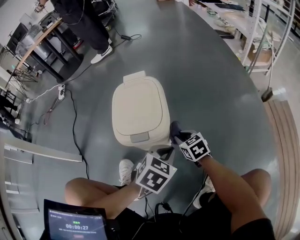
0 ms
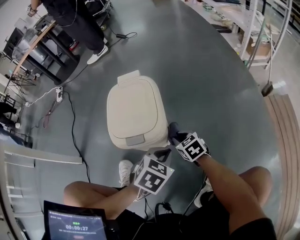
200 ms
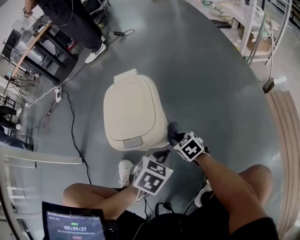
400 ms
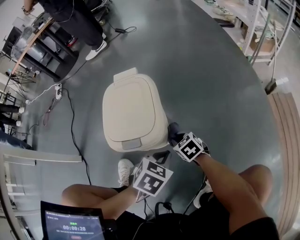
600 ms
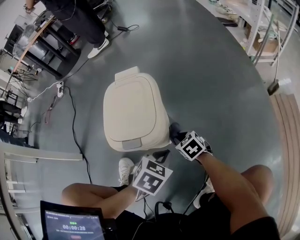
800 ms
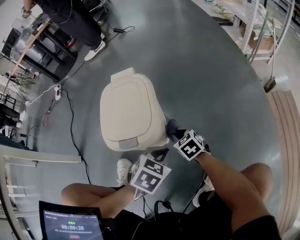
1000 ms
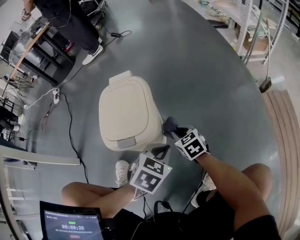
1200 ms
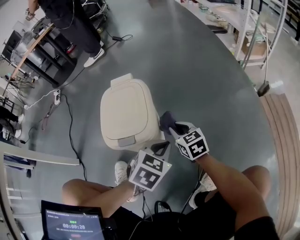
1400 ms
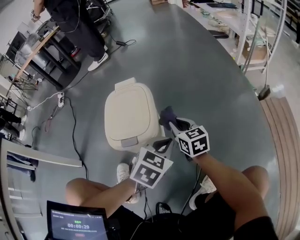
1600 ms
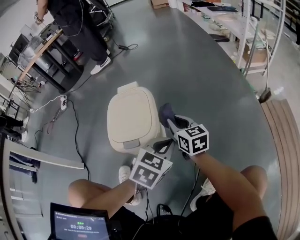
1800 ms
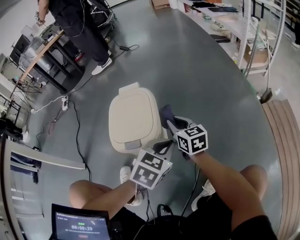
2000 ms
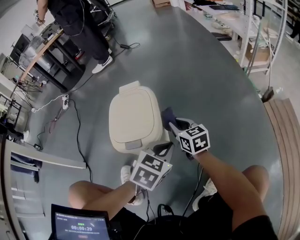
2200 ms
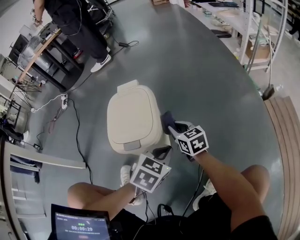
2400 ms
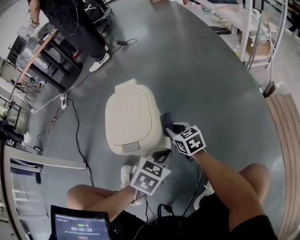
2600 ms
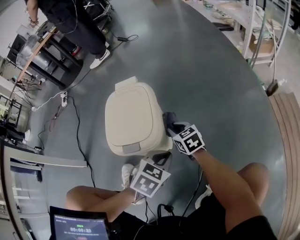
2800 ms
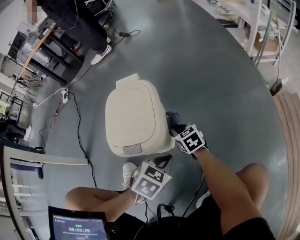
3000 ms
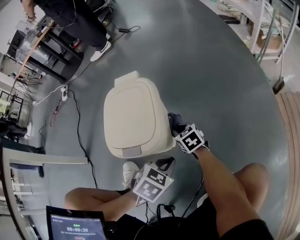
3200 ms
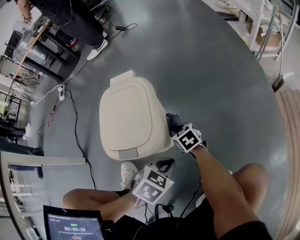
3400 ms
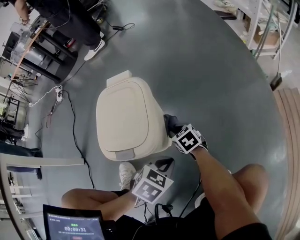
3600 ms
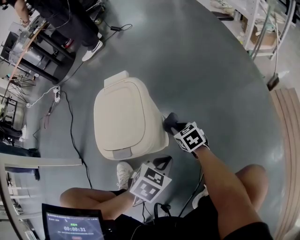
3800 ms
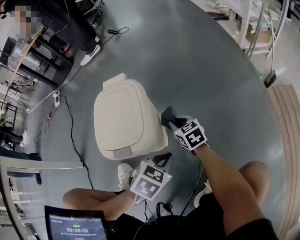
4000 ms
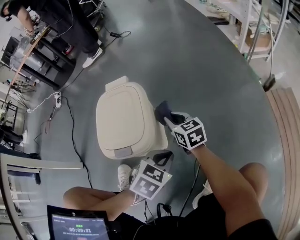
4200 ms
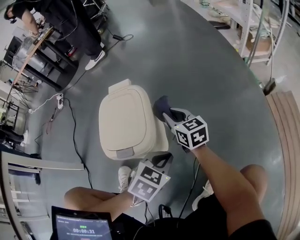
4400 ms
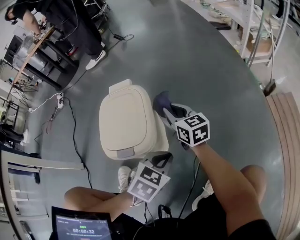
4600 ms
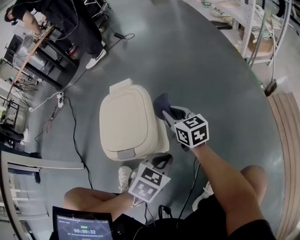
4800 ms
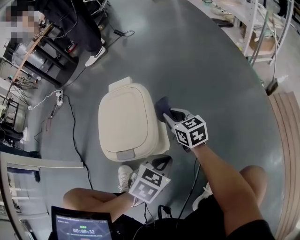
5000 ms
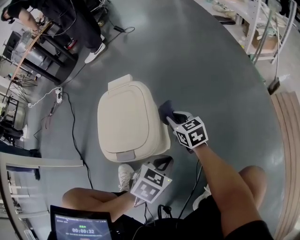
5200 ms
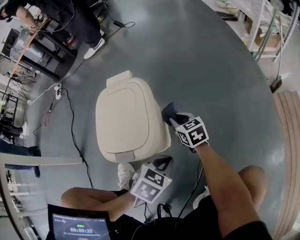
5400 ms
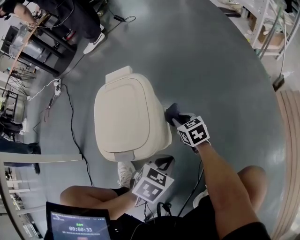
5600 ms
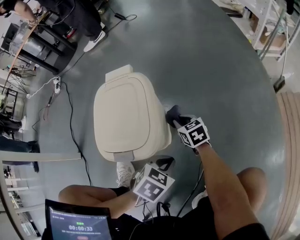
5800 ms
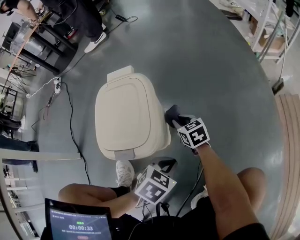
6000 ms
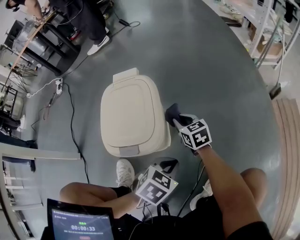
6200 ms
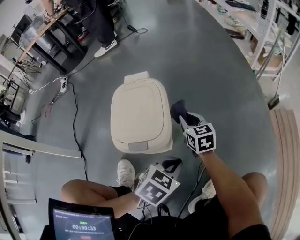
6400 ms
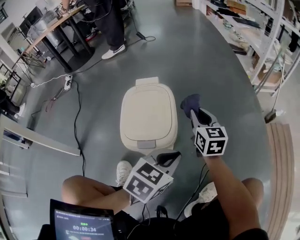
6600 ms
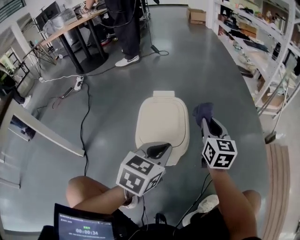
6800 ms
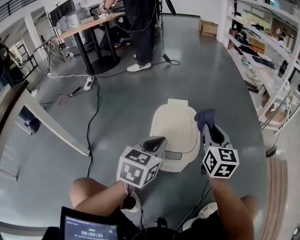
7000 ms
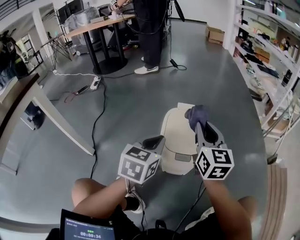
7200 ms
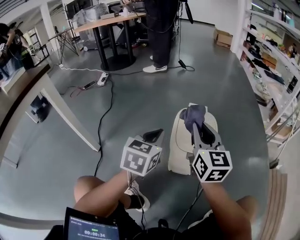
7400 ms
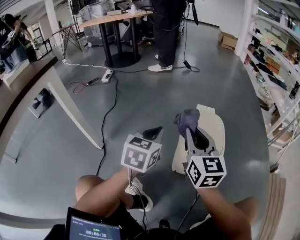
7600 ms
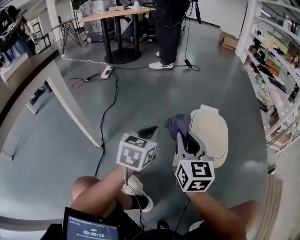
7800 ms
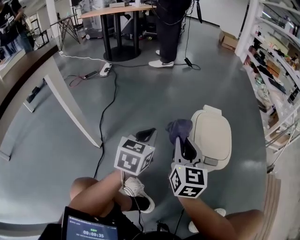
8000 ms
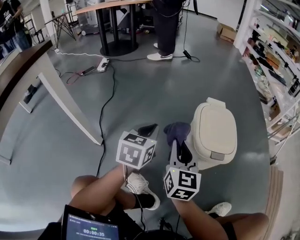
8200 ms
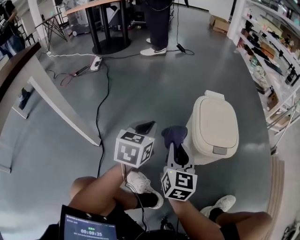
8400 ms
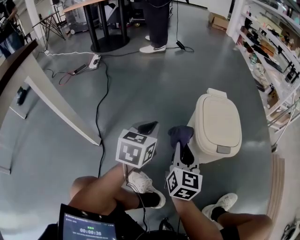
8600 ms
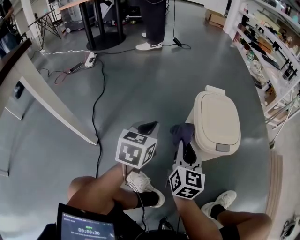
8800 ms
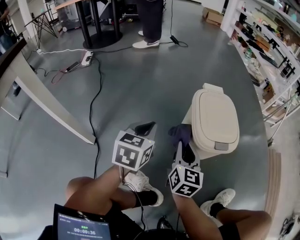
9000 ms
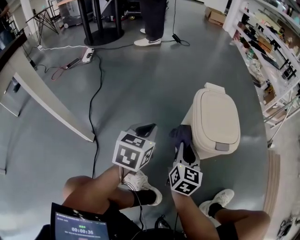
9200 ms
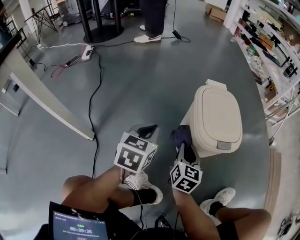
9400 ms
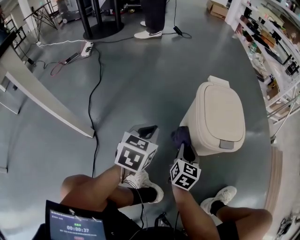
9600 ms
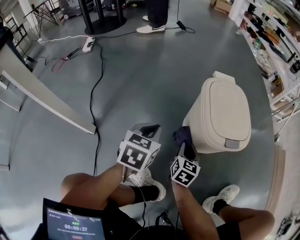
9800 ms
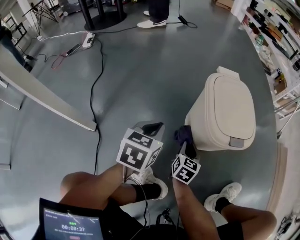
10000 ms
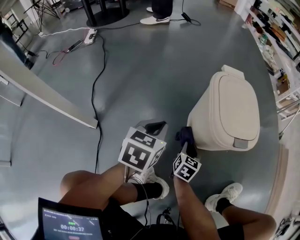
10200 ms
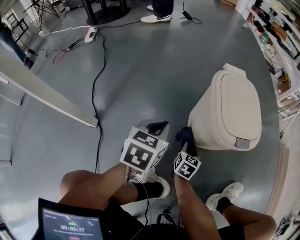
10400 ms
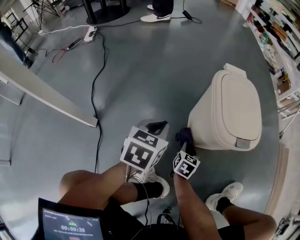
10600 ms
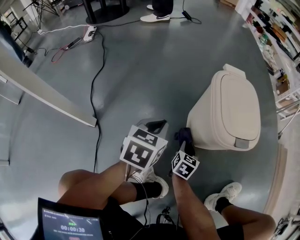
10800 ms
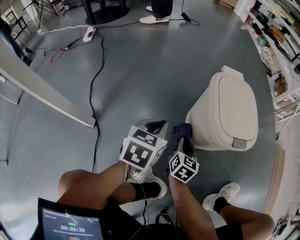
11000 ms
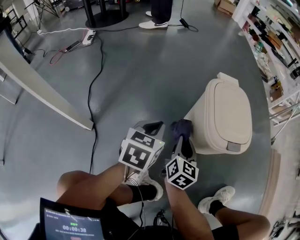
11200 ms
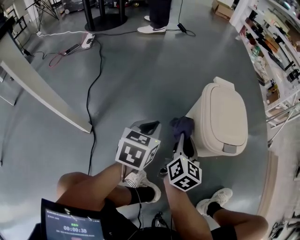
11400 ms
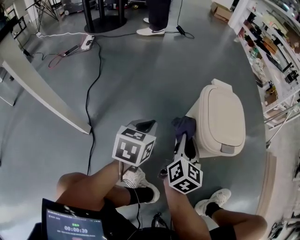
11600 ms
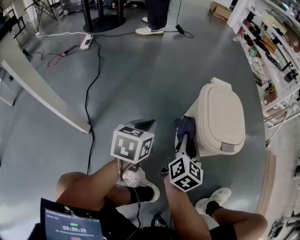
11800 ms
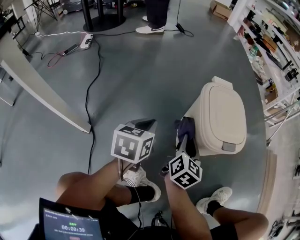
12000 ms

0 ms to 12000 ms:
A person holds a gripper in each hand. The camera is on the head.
0 ms to 1600 ms: The right gripper goes approximately 10 cm upward, and turns by about 20 degrees. The left gripper shifts by about 5 cm.
1600 ms to 3000 ms: The grippers both shift downward by some 10 cm. The right gripper changes its angle by about 20 degrees.
3000 ms to 4400 ms: The right gripper is displaced upward by roughly 10 cm, and rotates about 20 degrees; the left gripper shifts by roughly 5 cm.
4400 ms to 6000 ms: The right gripper goes some 15 cm downward, and changes its angle by about 20 degrees. Meanwhile the left gripper heads downward, covering about 5 cm.
6000 ms to 7600 ms: The left gripper moves roughly 40 cm, and tilts its fingers some 40 degrees upward. Meanwhile the right gripper travels upward by about 35 cm, and tilts its fingers roughly 30 degrees upward.
7600 ms to 9000 ms: The right gripper is displaced downward by about 20 cm, and changes its angle by approximately 30 degrees, while the left gripper travels downward and to the left by some 10 cm.
9000 ms to 10400 ms: The right gripper moves downward, approximately 25 cm, and swivels roughly 30 degrees; the left gripper travels downward by approximately 10 cm.
10400 ms to 12000 ms: The right gripper shifts about 20 cm upward, and changes its angle by some 20 degrees.

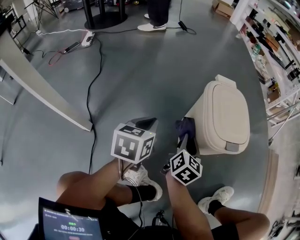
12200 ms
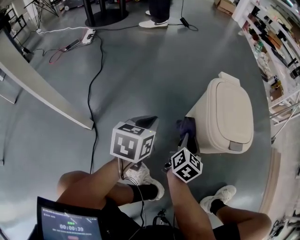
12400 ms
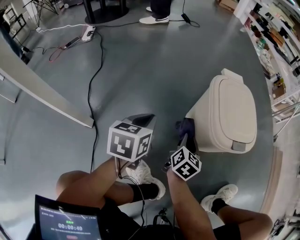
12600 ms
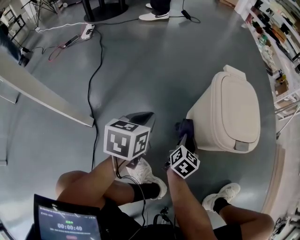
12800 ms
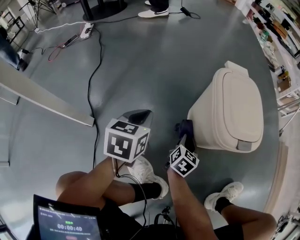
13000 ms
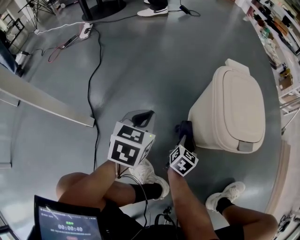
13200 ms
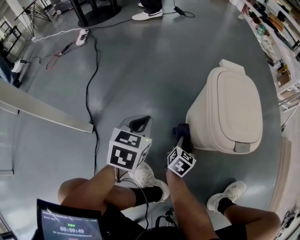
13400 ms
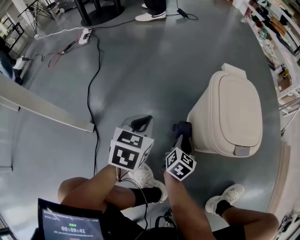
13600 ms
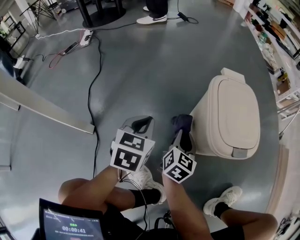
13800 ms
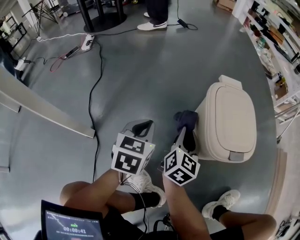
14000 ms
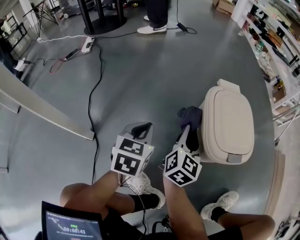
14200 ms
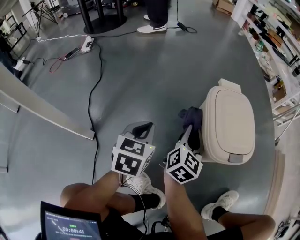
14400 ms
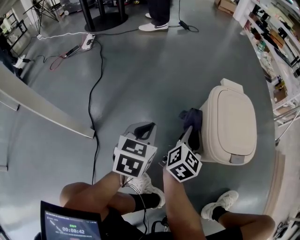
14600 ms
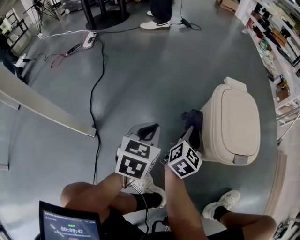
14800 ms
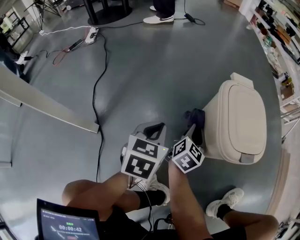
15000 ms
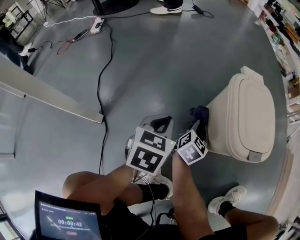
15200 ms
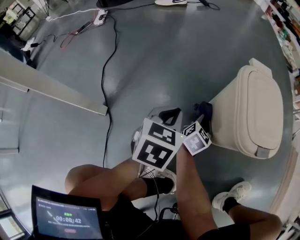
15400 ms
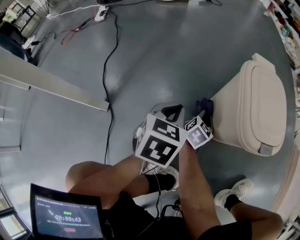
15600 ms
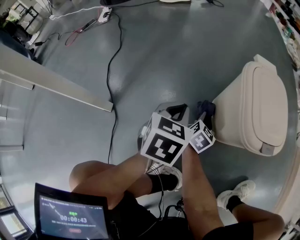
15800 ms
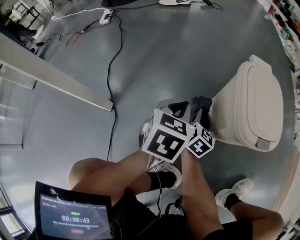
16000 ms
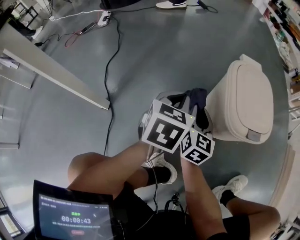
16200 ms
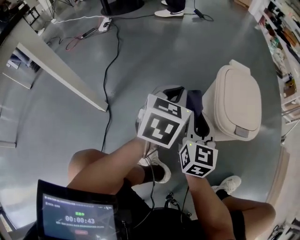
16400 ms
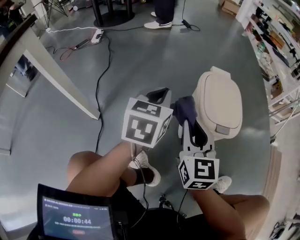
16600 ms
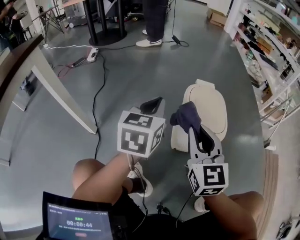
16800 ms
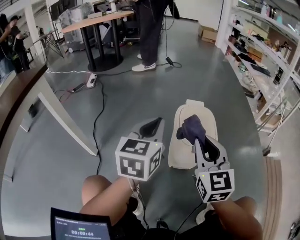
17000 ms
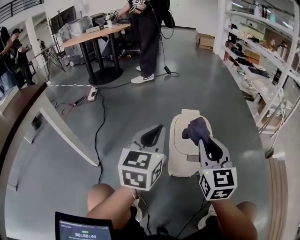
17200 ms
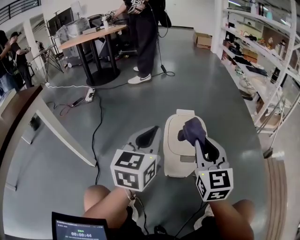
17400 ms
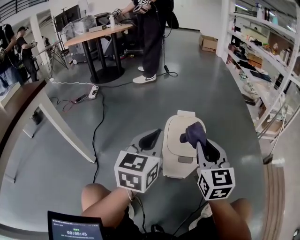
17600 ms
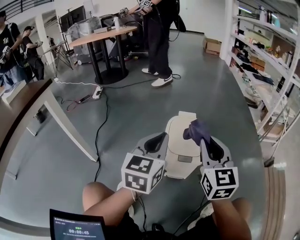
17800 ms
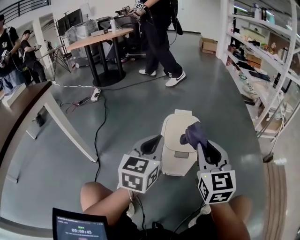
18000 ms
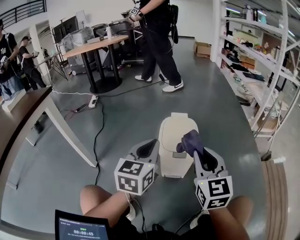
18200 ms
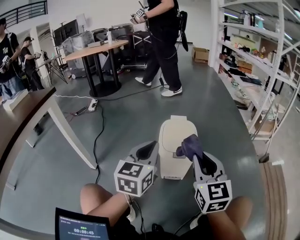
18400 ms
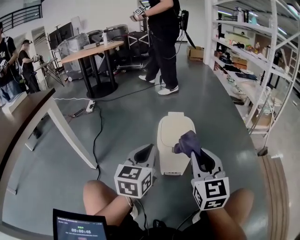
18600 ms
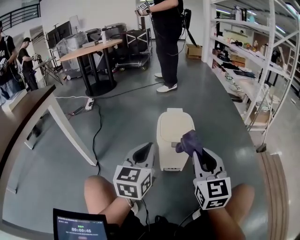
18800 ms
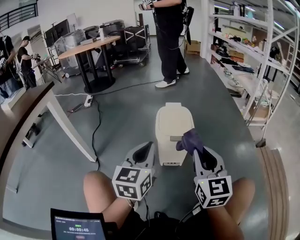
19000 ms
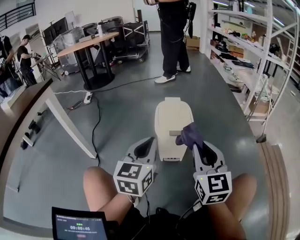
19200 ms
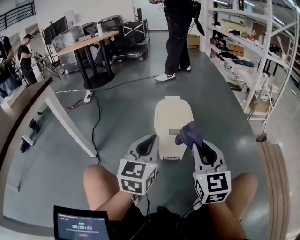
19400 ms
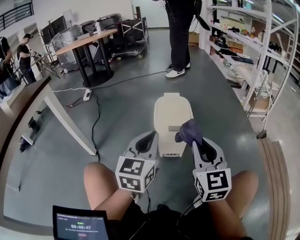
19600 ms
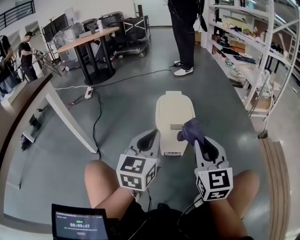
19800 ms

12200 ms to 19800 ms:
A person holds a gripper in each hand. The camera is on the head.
12200 ms to 13800 ms: The right gripper goes downward and returns, some 15 cm each way.
13800 ms to 15200 ms: The right gripper travels upward and back again, some 10 cm each way.
15200 ms to 16800 ms: The left gripper goes approximately 25 cm upward, and swivels roughly 20 degrees. The right gripper shifts approximately 35 cm upward and backward, and changes its angle by some 50 degrees.
16800 ms to 18200 ms: The left gripper heads to the right, backward and upward, covering about 15 cm. The right gripper moves to the right and upward, some 15 cm.
18200 ms to 19800 ms: Both grippers move backward, some 10 cm.

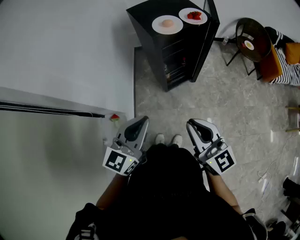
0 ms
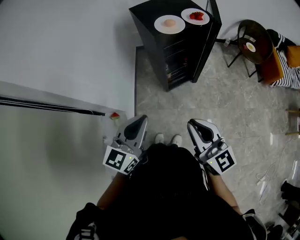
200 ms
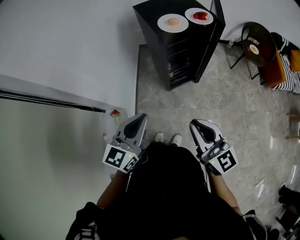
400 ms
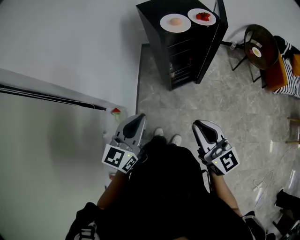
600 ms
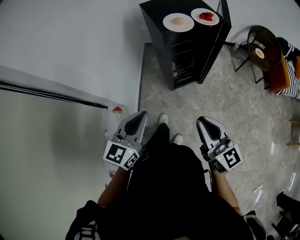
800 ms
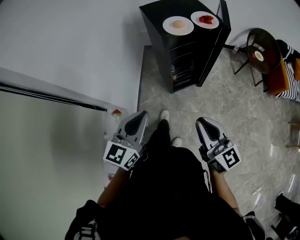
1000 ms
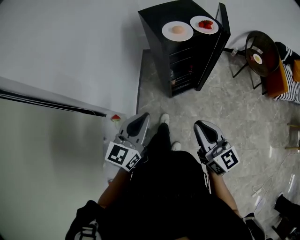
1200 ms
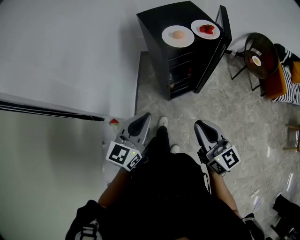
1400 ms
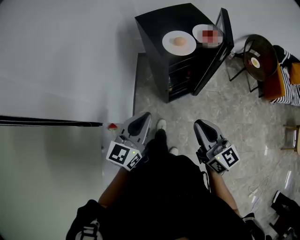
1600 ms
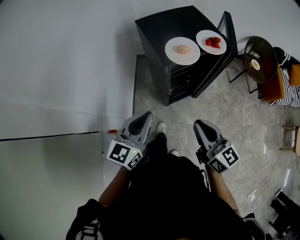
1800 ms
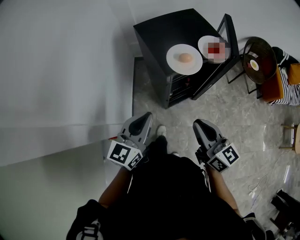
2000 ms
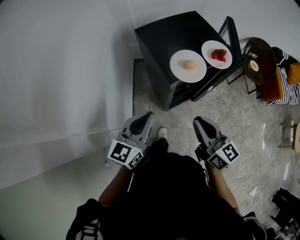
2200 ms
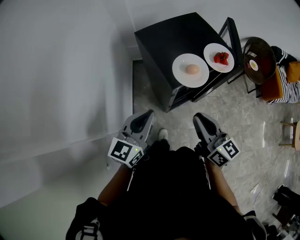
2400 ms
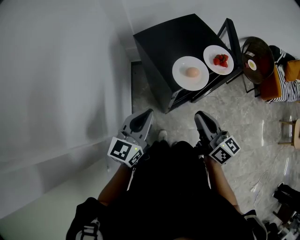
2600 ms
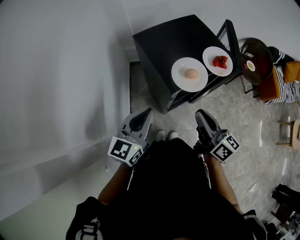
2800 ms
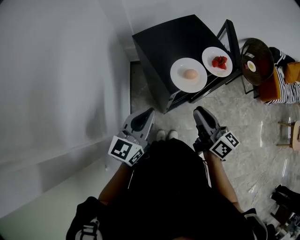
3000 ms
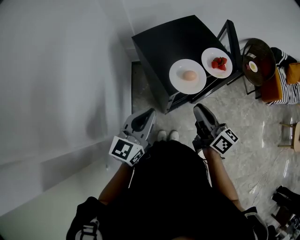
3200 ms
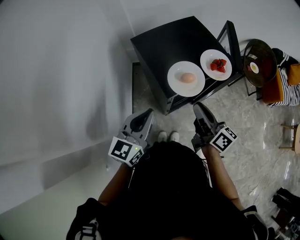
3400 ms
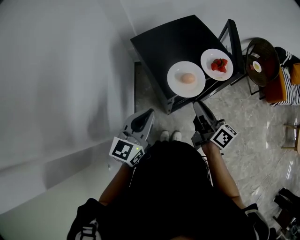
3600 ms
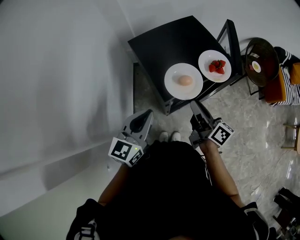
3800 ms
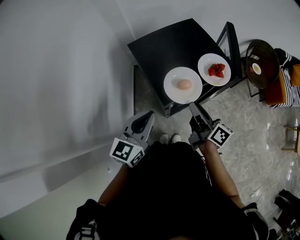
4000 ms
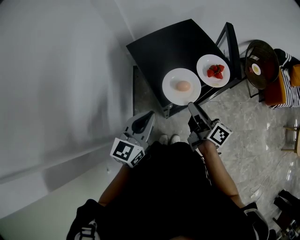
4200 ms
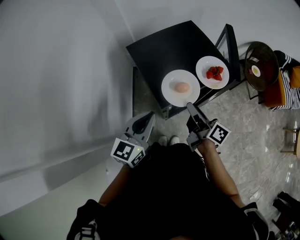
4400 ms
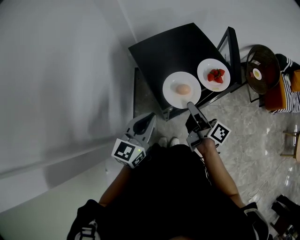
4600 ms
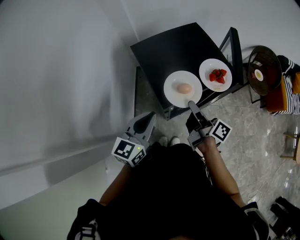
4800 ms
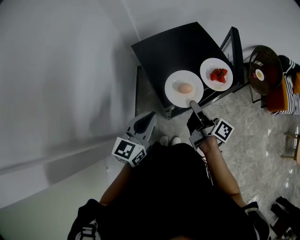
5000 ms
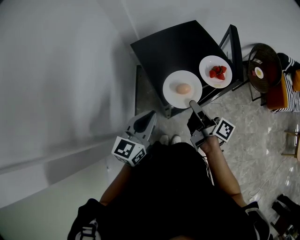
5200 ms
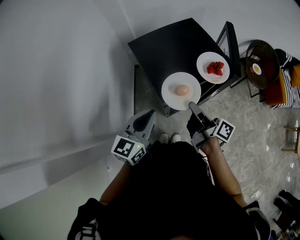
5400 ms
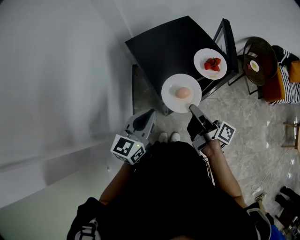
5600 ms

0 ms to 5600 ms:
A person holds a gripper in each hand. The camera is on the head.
0 ms to 1400 ms: The two grippers go some 5 cm forward.
1400 ms to 2800 ms: The grippers both shift forward by approximately 25 cm. The right gripper turns by about 20 degrees.
2800 ms to 4200 ms: The left gripper ends up some 5 cm from where it was, while the right gripper travels forward by approximately 10 cm, and rotates about 20 degrees.
4200 ms to 5600 ms: The right gripper changes its angle by approximately 20 degrees.
